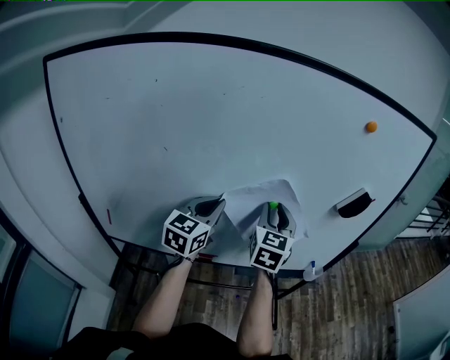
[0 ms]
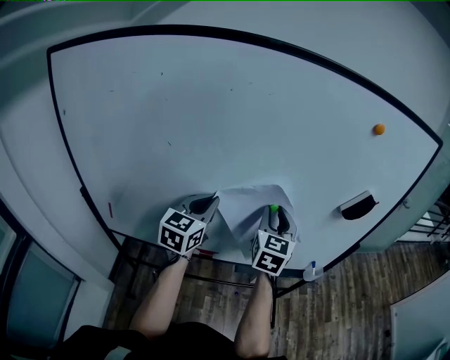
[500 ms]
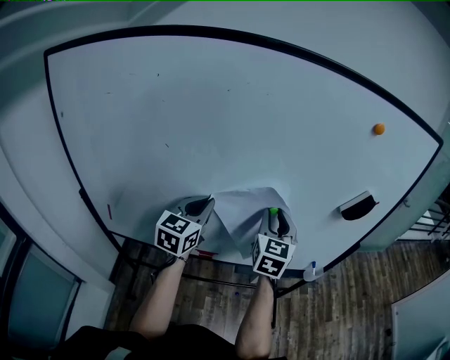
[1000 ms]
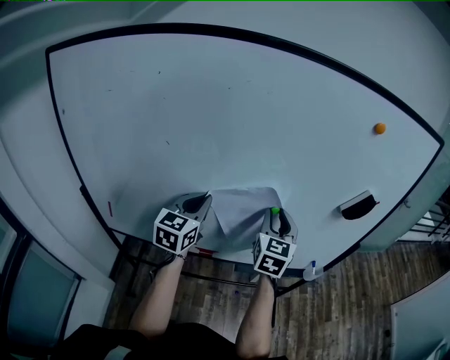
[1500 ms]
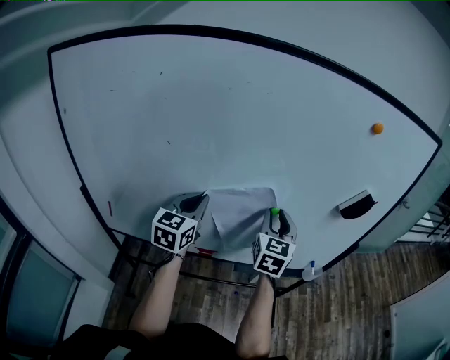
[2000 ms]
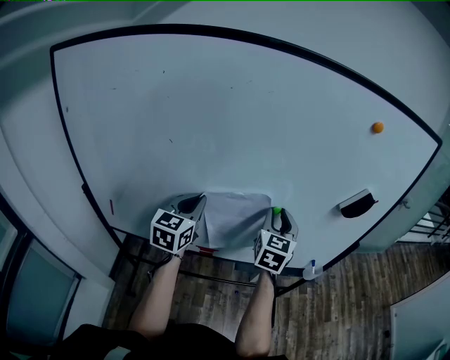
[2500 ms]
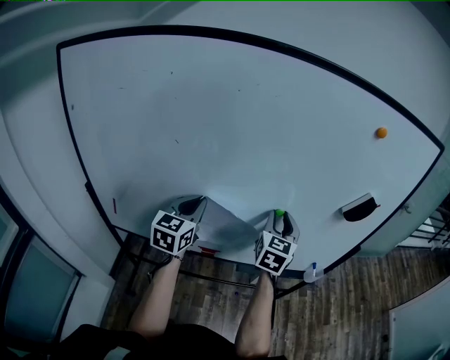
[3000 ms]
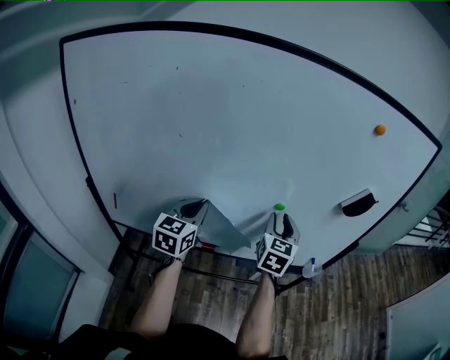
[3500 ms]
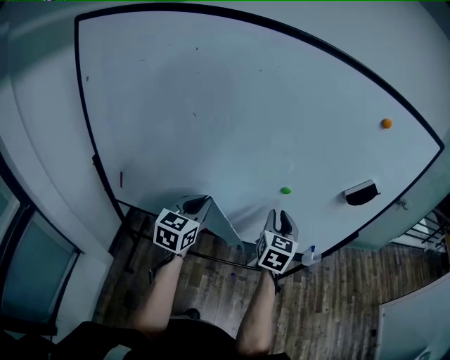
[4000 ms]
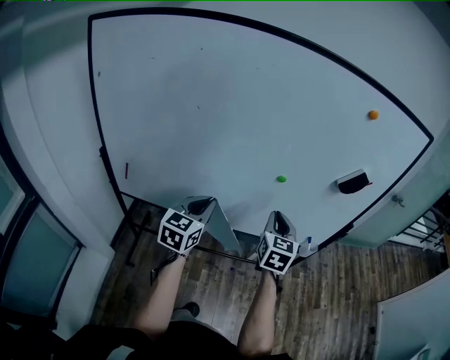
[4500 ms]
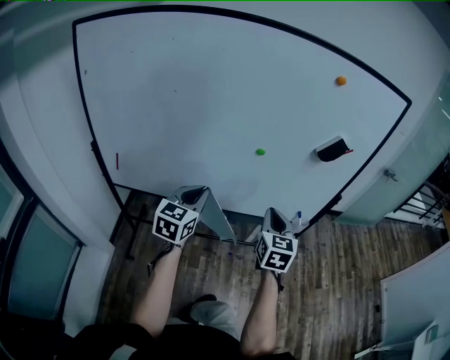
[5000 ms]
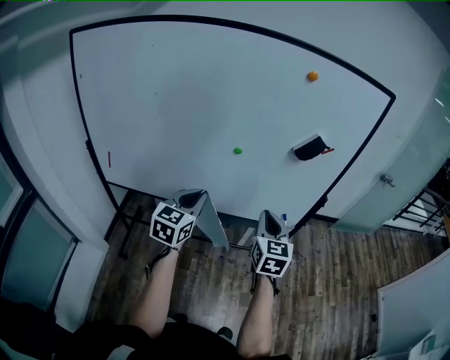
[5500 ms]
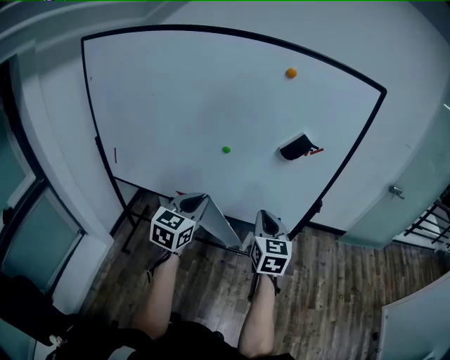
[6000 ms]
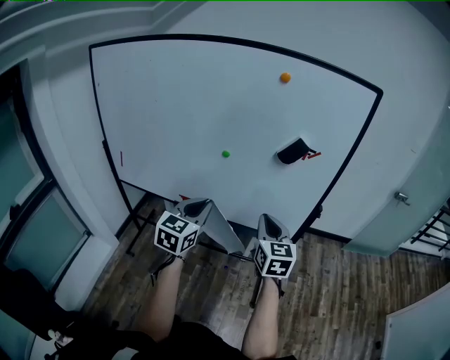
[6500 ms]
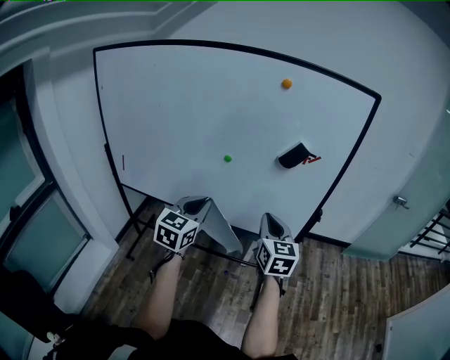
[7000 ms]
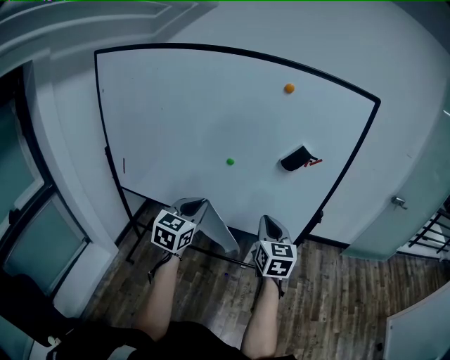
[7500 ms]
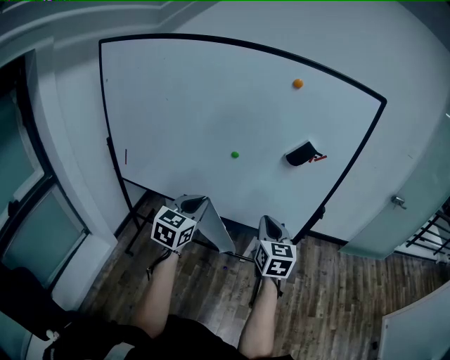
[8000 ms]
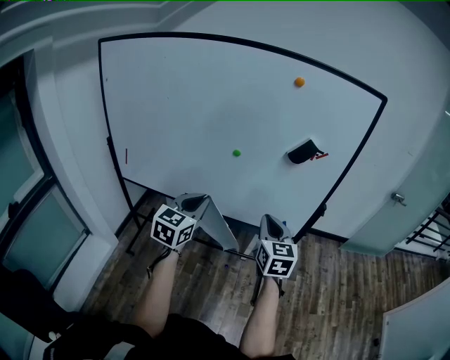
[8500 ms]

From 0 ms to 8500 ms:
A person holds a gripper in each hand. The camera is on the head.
From 0 ms to 2000 ms: The left gripper goes some 5 cm to the left.
From 2000 ms to 4000 ms: Both grippers travel together backward, some 5 cm.
From 4000 ms to 6500 ms: The grippers both shift to the right and backward by some 30 cm. The right gripper swivels approximately 20 degrees, and closes up.
From 6500 ms to 8500 ms: The left gripper heads to the left, covering some 5 cm.

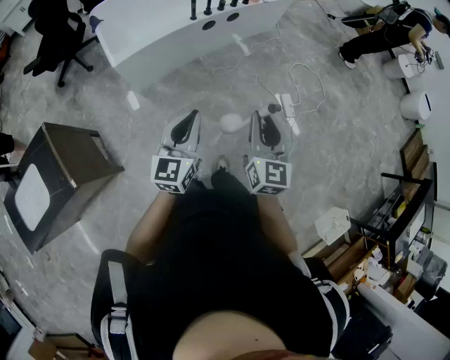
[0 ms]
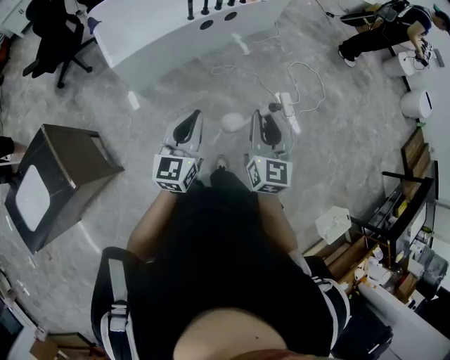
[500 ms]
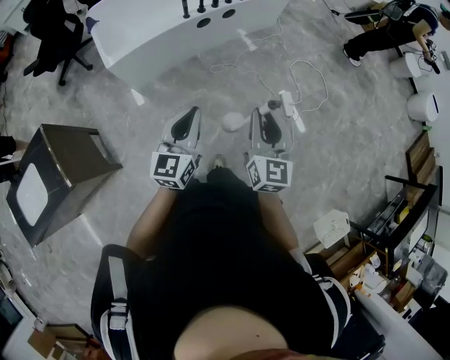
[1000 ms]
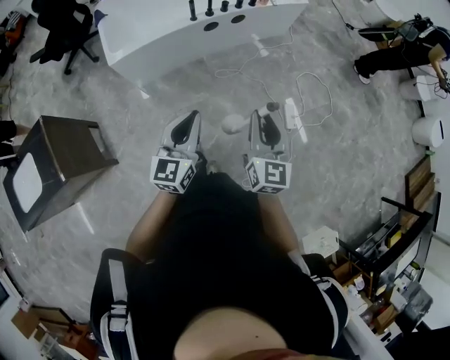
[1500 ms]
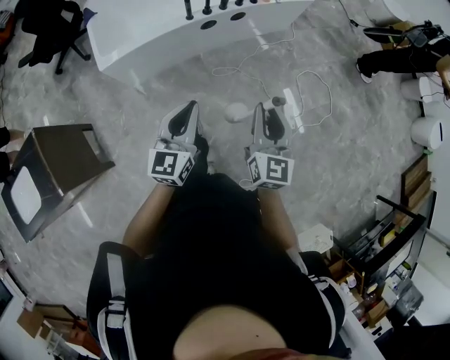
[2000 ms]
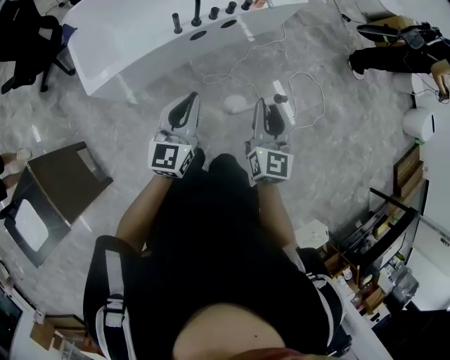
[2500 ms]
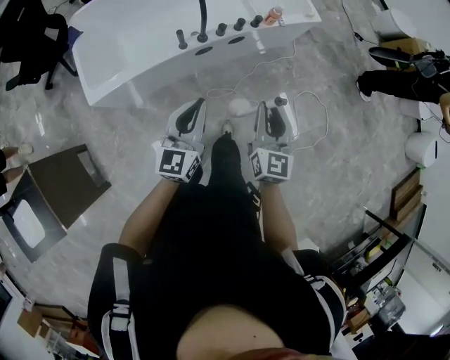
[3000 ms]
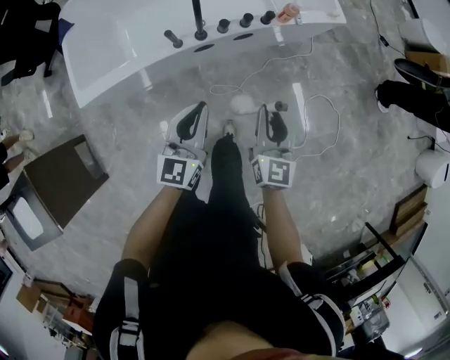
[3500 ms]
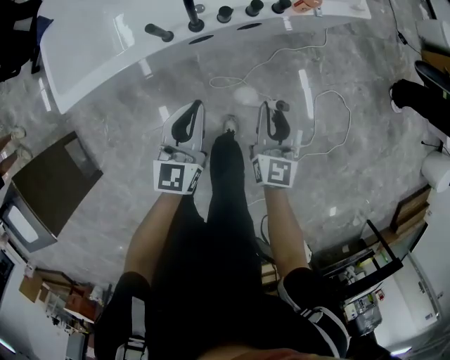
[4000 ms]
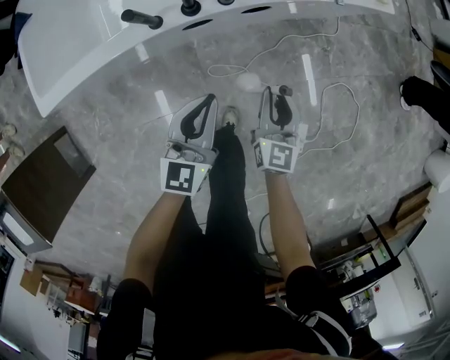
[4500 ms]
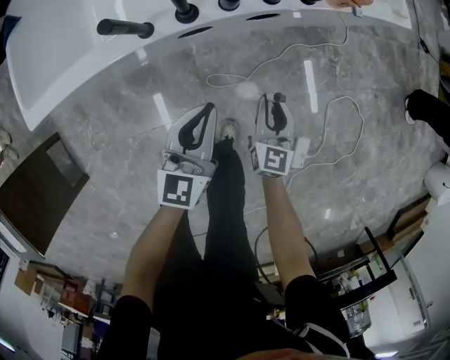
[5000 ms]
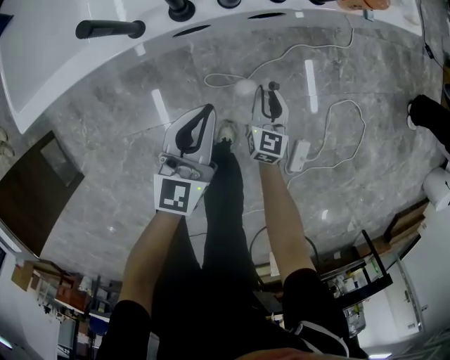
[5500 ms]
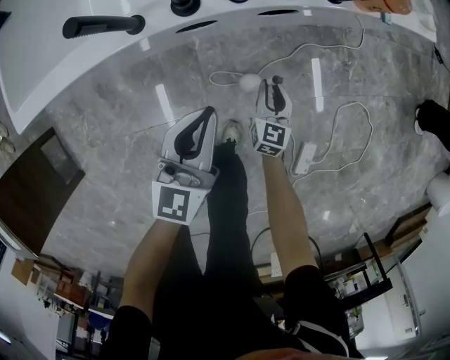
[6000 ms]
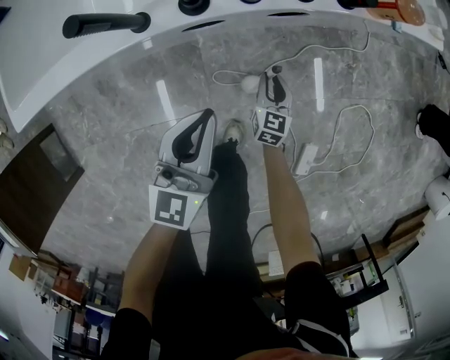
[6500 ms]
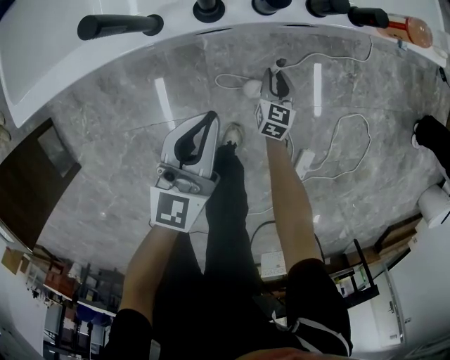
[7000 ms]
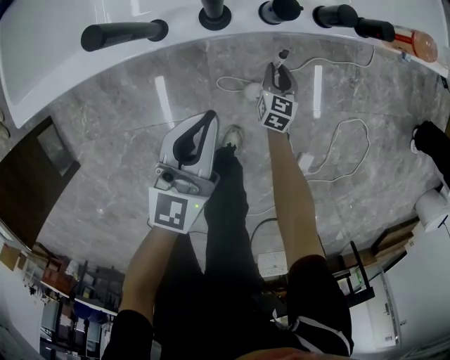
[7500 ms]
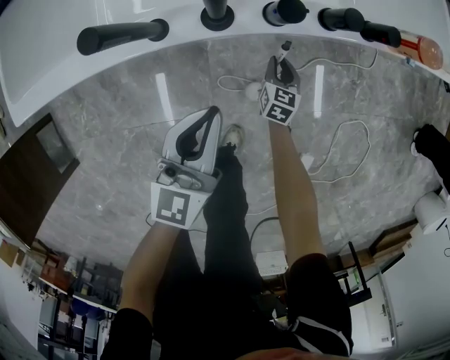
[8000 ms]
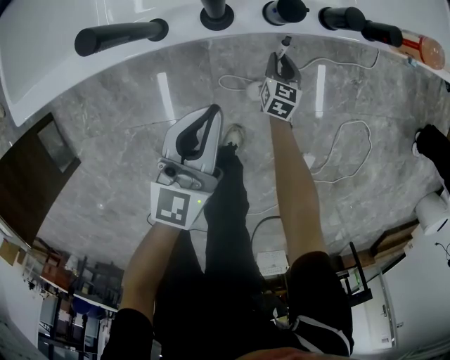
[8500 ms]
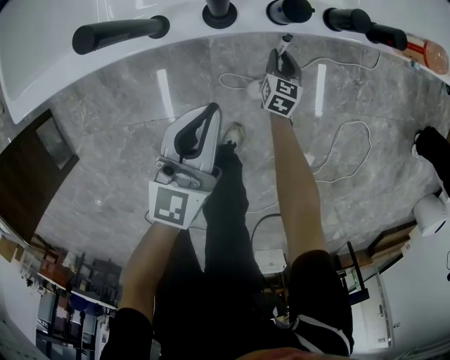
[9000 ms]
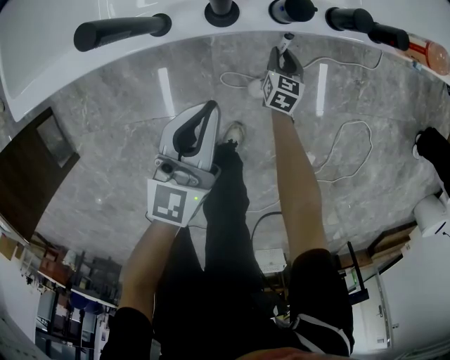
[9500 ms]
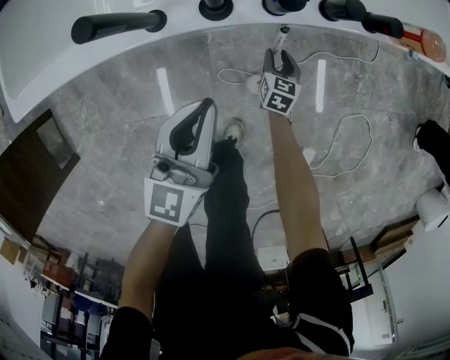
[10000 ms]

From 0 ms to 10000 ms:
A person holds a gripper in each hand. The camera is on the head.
From 0 ms to 2000 ms: Both grippers move forward, approximately 20 cm.
From 2000 ms to 4000 ms: Both grippers are carried forward, roughly 40 cm. Both grippers travel together downward, some 25 cm.
From 4000 ms to 6000 ms: The left gripper shifts roughly 20 cm downward; the right gripper moves downward, roughly 40 cm.
From 6000 ms to 8000 ms: The left gripper shifts by roughly 5 cm. The right gripper goes about 15 cm forward and downward.
From 8000 ms to 10000 ms: The grippers make only small movements.

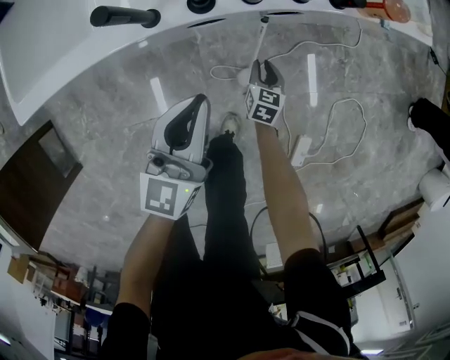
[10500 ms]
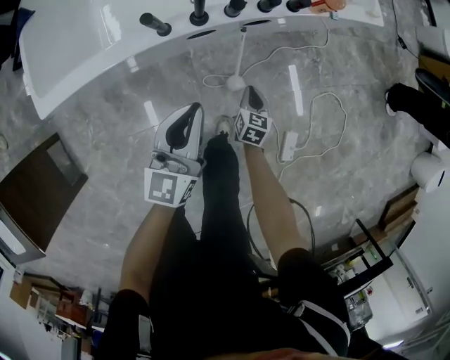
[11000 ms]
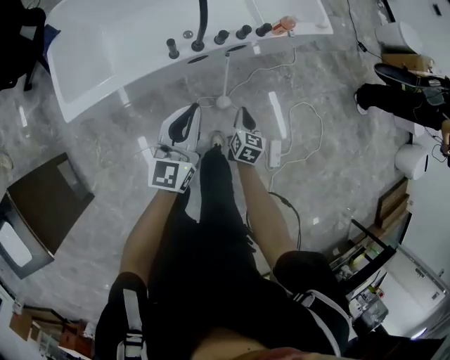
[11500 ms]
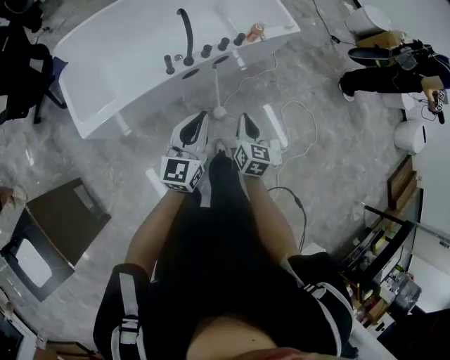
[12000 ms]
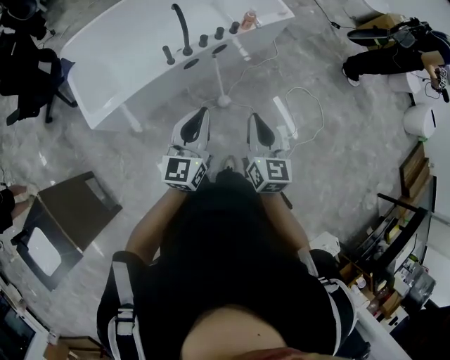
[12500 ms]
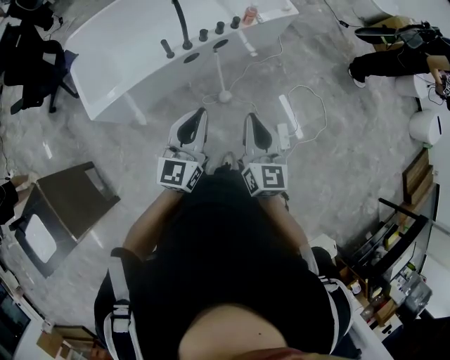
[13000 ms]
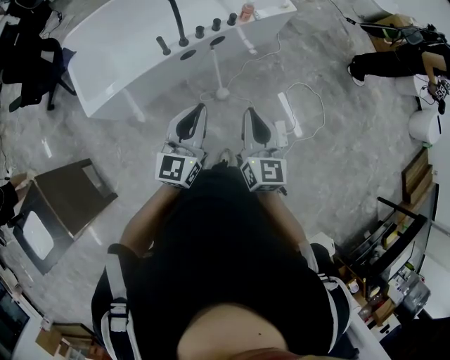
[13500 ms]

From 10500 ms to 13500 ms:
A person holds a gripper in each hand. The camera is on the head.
From 10500 ms to 12000 ms: The left gripper is displaced upward and backward by about 40 cm; the right gripper shifts about 60 cm upward and backward, changes its angle by roughly 20 degrees, and closes.
From 12000 ms to 13500 ms: The right gripper shifts roughly 20 cm upward, backward and to the right; the left gripper travels to the right, backward and upward by about 15 cm.

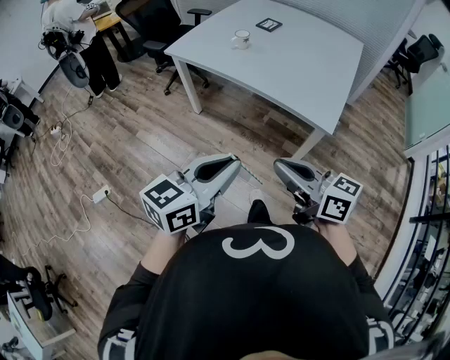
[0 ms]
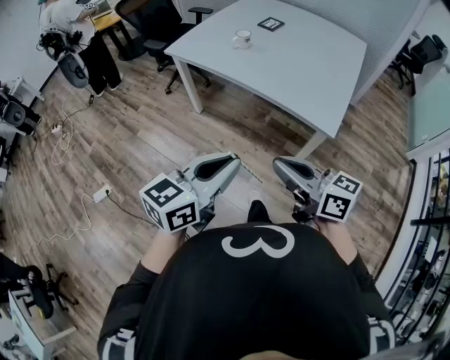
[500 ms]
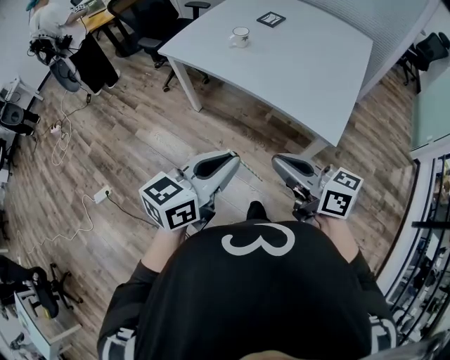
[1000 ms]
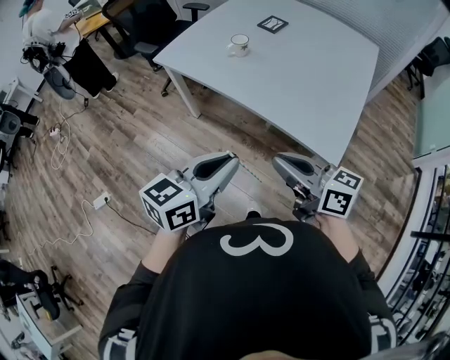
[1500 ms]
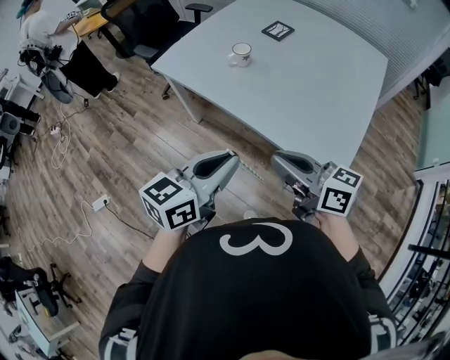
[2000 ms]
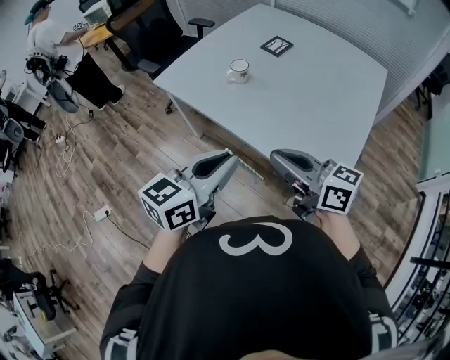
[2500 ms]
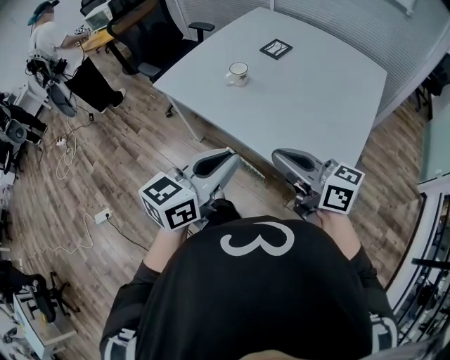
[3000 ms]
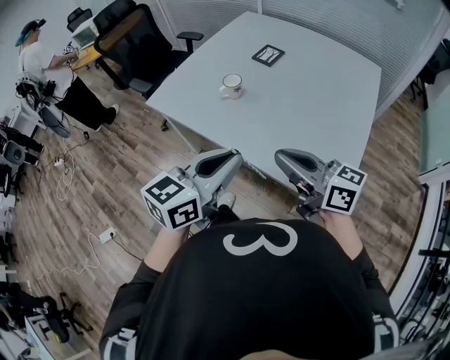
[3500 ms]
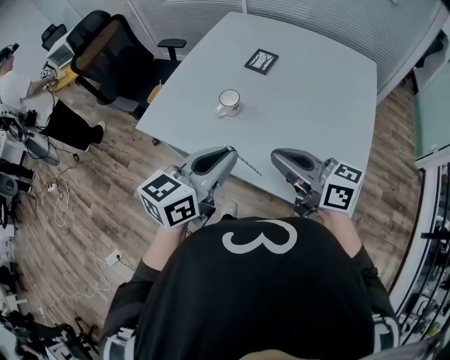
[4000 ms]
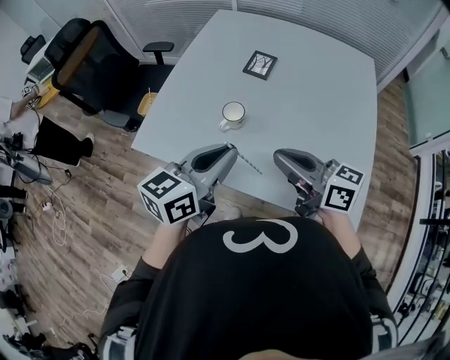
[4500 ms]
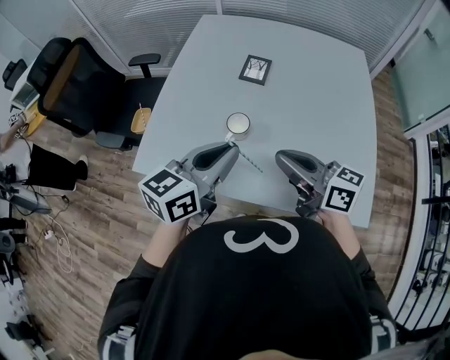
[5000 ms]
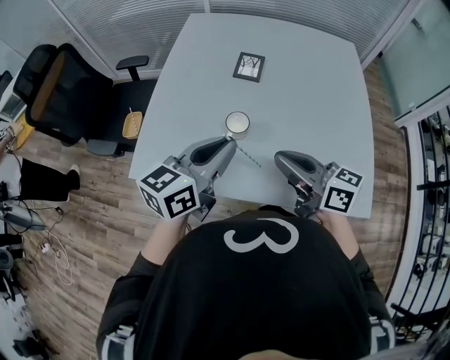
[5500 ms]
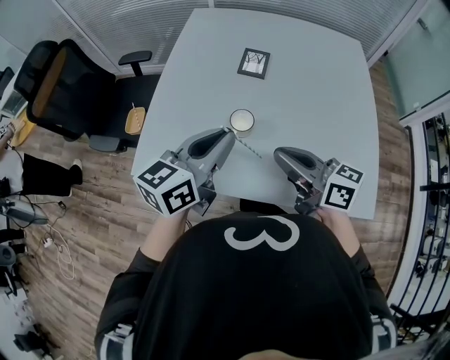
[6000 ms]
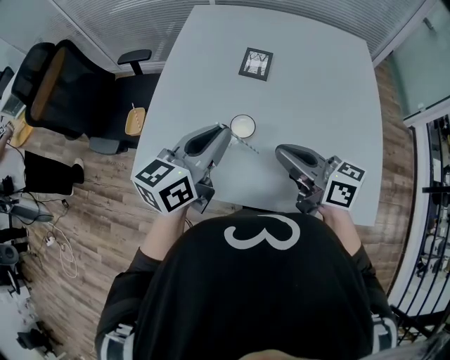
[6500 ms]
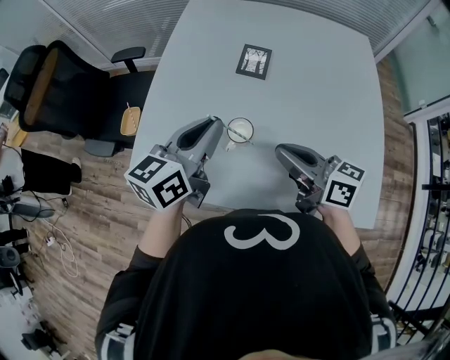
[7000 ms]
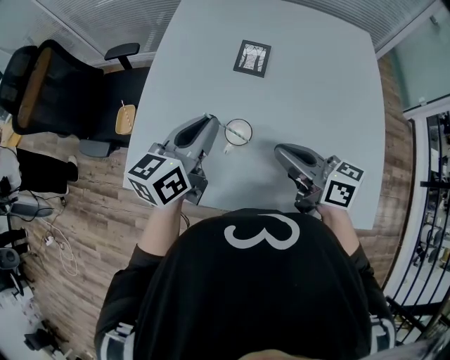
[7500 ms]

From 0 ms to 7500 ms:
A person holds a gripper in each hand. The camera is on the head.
From 0 ms to 2000 ms: The grippers both shift forward by some 25 cm.
From 2000 ms to 4000 ms: Both grippers travel together forward, about 20 cm.
From 4000 ms to 5500 ms: Both grippers travel together forward and to the left, approximately 15 cm. The right gripper changes its angle by roughly 20 degrees.
From 5500 ms to 7500 ms: Both grippers move forward, about 10 cm.
